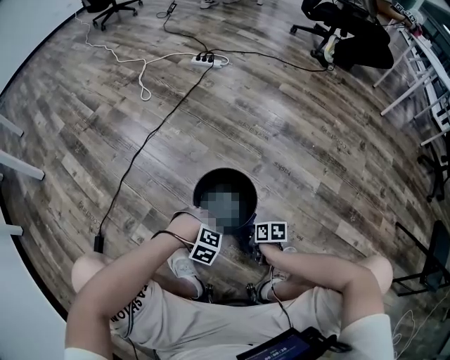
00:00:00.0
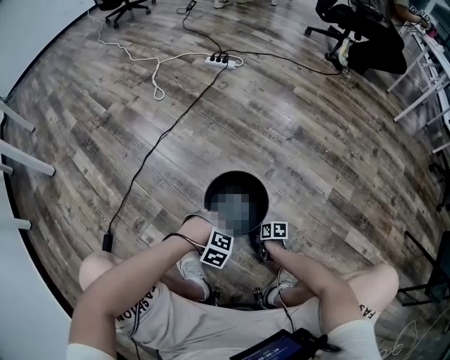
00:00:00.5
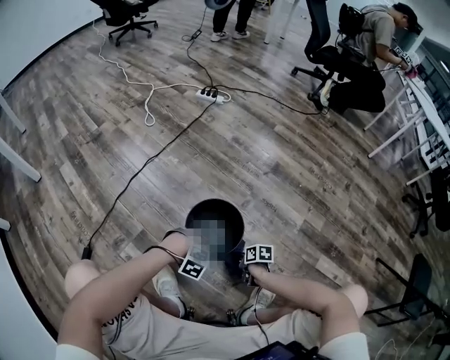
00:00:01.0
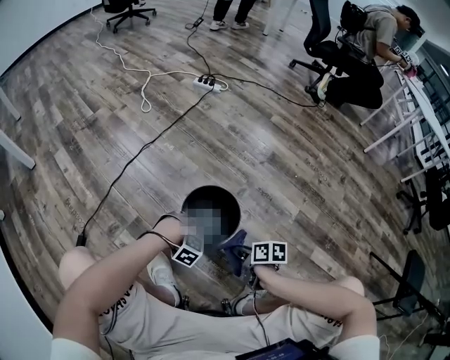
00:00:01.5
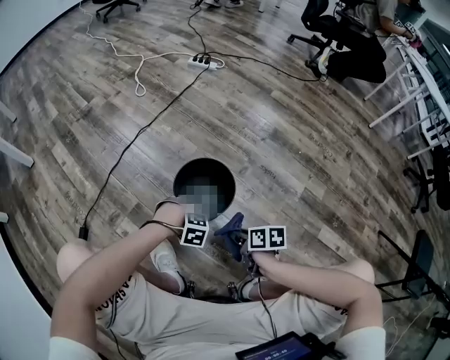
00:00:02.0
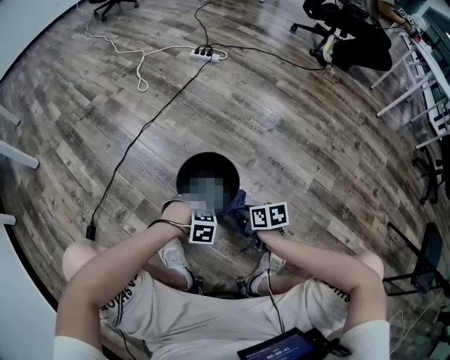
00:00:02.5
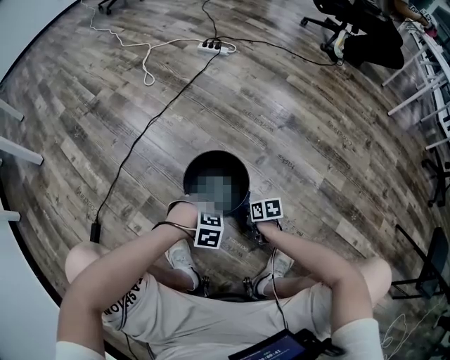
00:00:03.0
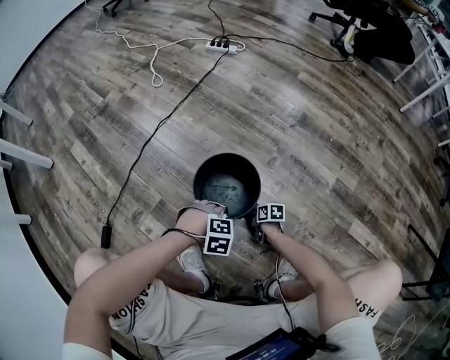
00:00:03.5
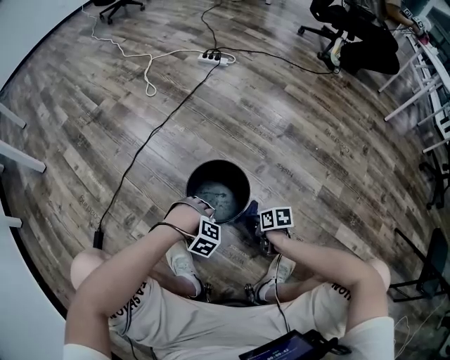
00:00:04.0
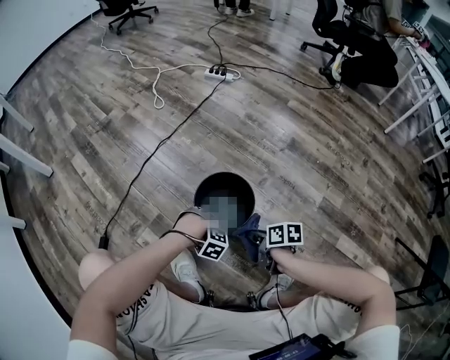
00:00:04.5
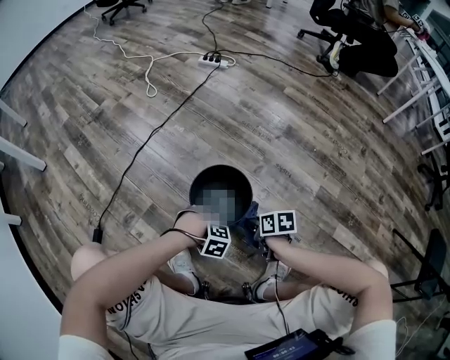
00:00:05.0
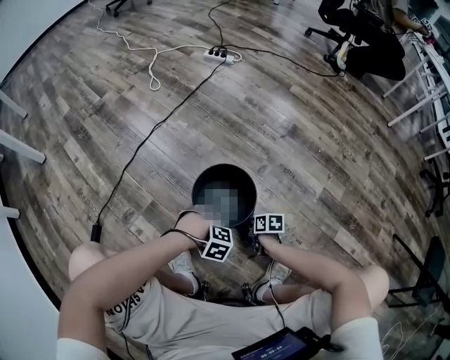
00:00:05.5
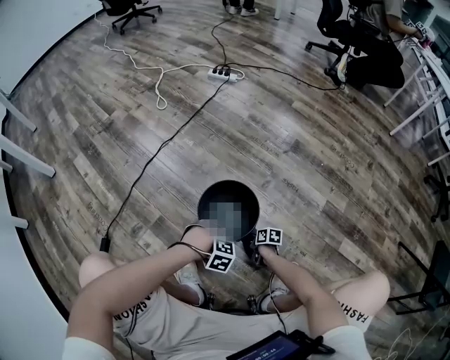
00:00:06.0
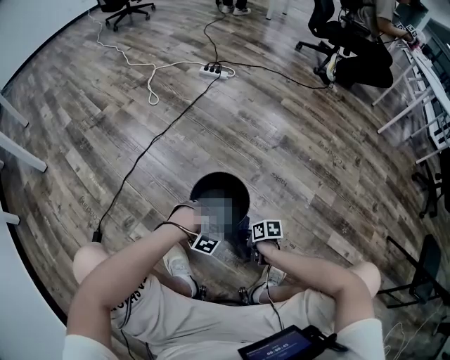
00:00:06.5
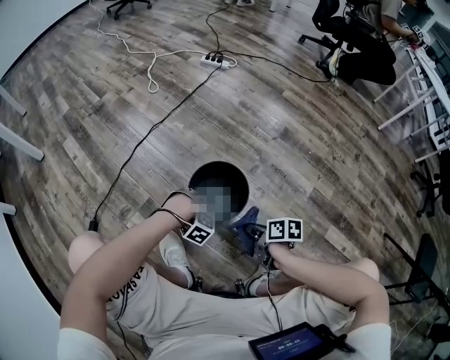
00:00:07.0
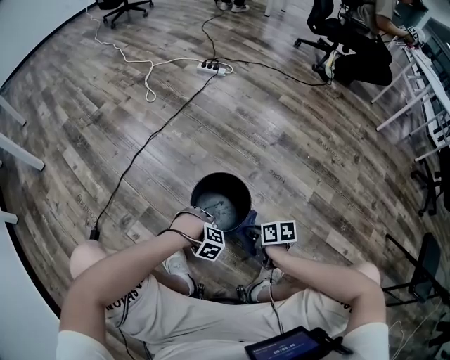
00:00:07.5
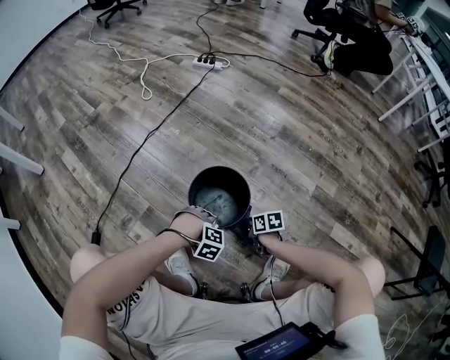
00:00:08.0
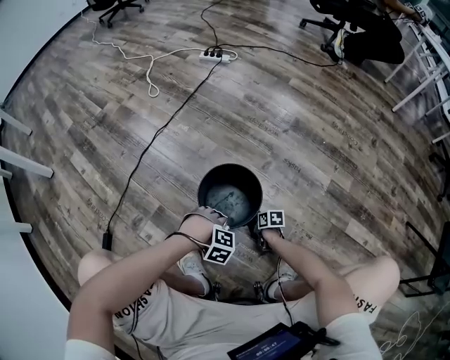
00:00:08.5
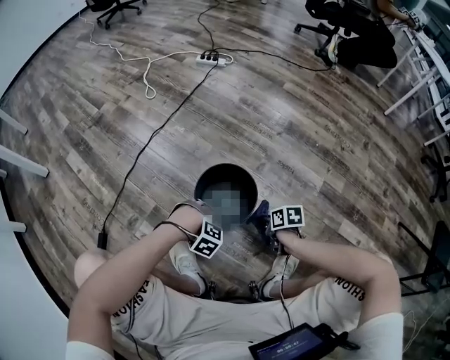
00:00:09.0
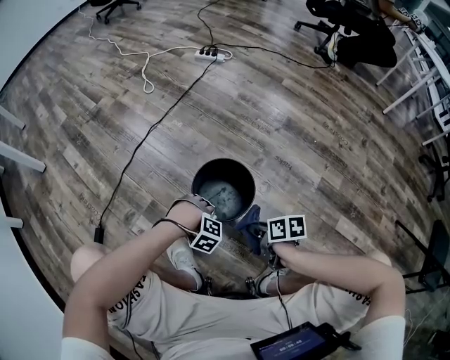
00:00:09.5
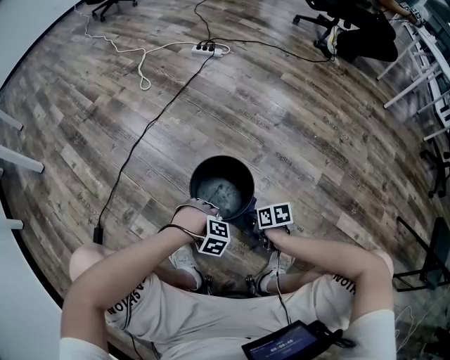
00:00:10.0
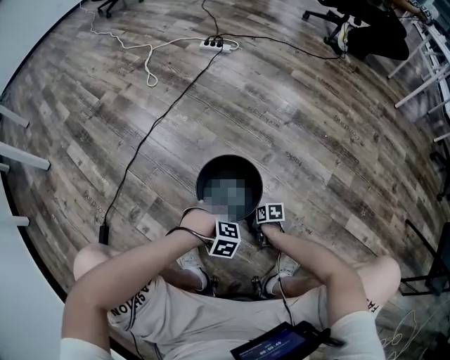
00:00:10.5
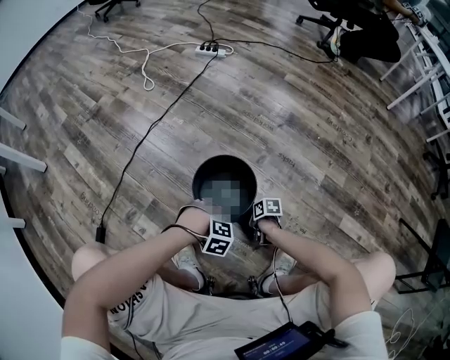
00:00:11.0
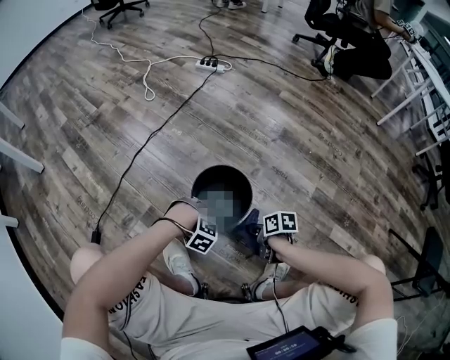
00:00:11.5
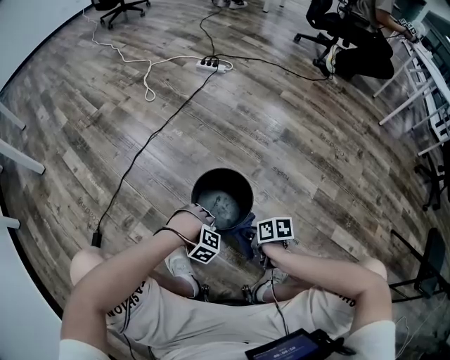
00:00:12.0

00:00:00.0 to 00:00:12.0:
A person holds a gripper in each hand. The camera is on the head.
00:00:00.0 to 00:00:02.0: The right gripper goes about 10 cm upward.
00:00:02.0 to 00:00:04.0: The right gripper is displaced downward by approximately 10 cm.
00:00:04.0 to 00:00:06.0: The right gripper moves downward, roughly 15 cm.
00:00:06.0 to 00:00:08.0: The right gripper moves upward, roughly 10 cm.
00:00:08.0 to 00:00:10.0: The right gripper moves up and down over some 25 cm, changing direction 2 times.
00:00:10.0 to 00:00:12.0: The right gripper moves about 15 cm downward and comes back.

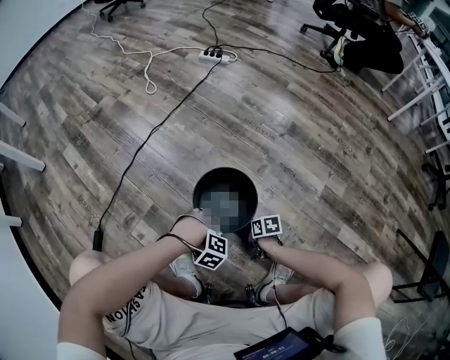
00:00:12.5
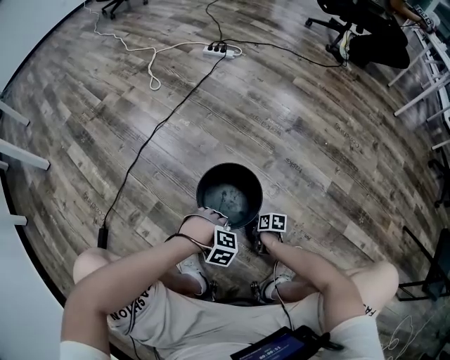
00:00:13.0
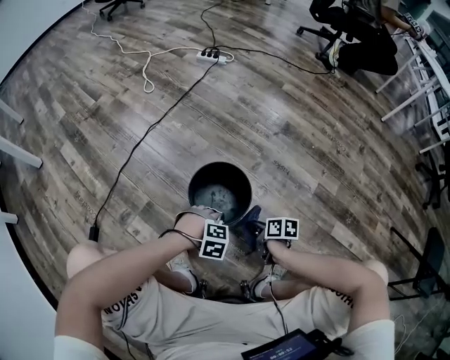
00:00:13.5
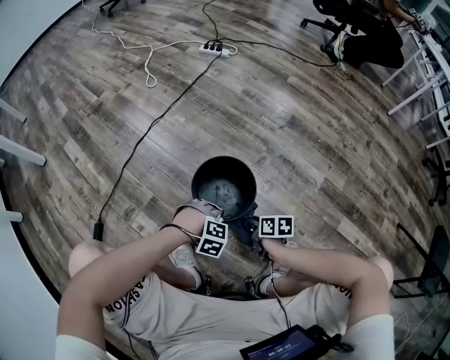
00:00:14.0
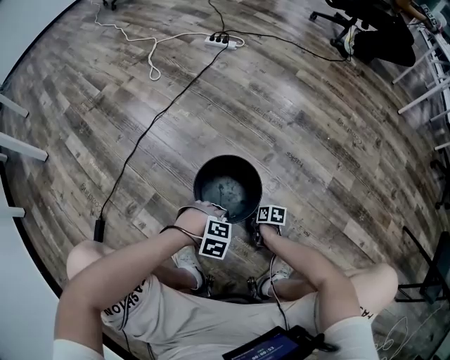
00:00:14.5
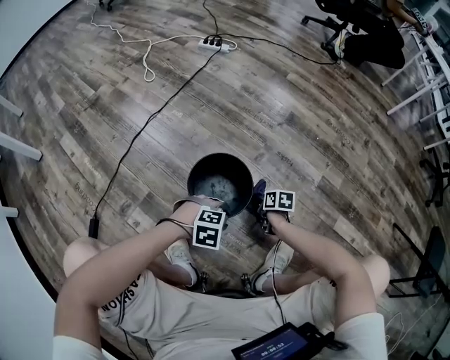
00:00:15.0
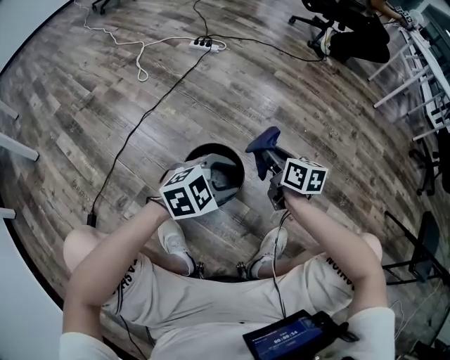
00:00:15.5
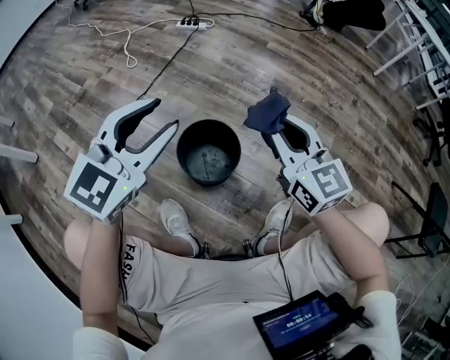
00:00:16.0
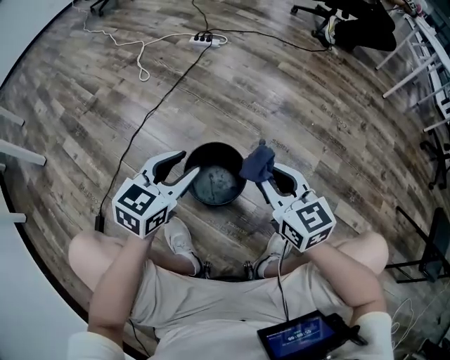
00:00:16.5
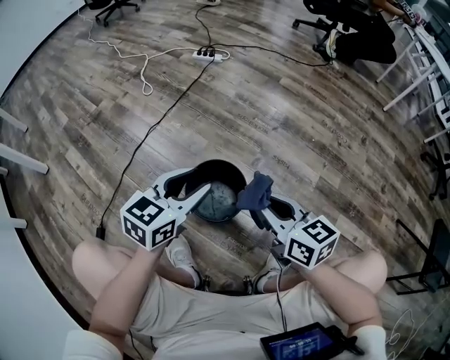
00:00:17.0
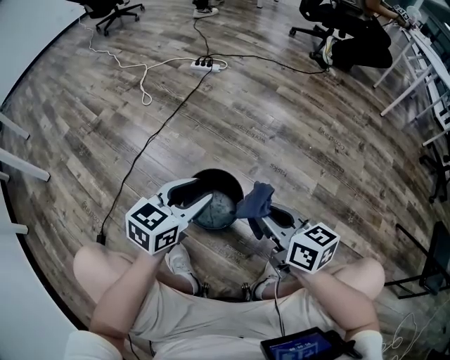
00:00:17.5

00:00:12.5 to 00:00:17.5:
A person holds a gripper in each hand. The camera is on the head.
00:00:12.5 to 00:00:15.0: The right gripper goes up and down, roughly 15 cm each way, reversing 3 times.
00:00:15.0 to 00:00:17.5: The right gripper goes approximately 35 cm upward, and tips its fingers upward by roughly 40 degrees.

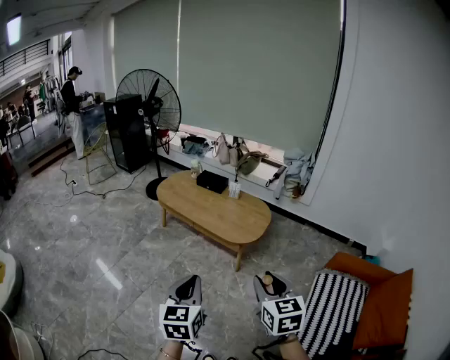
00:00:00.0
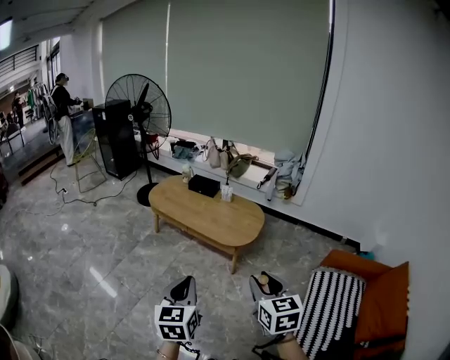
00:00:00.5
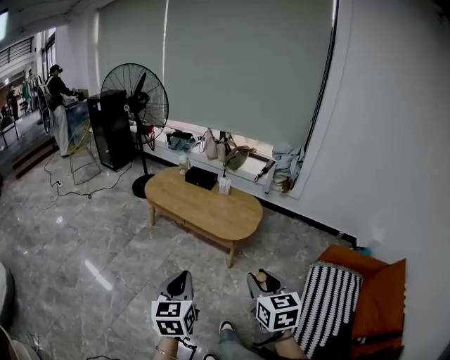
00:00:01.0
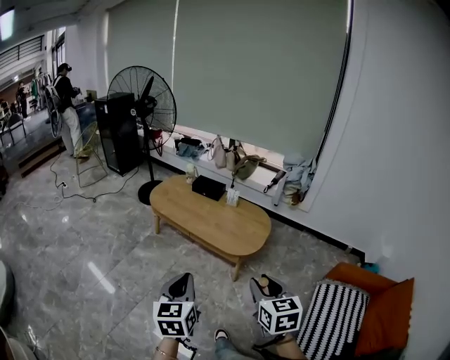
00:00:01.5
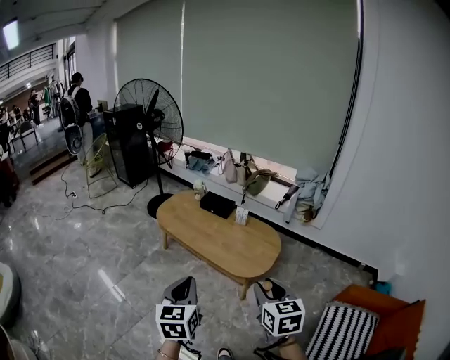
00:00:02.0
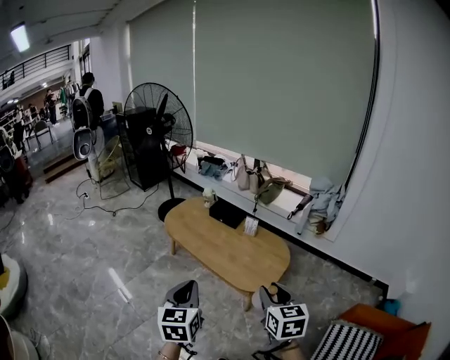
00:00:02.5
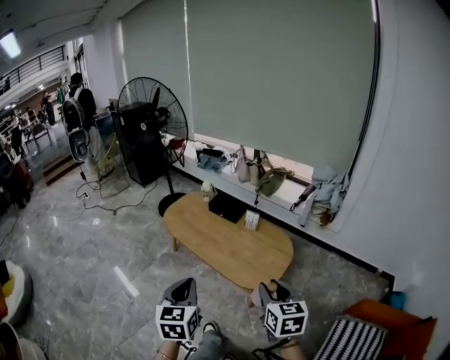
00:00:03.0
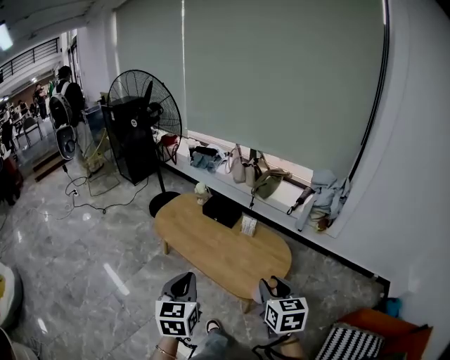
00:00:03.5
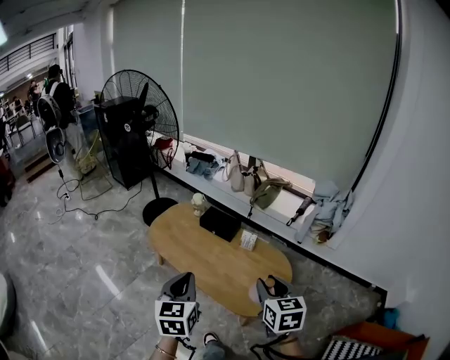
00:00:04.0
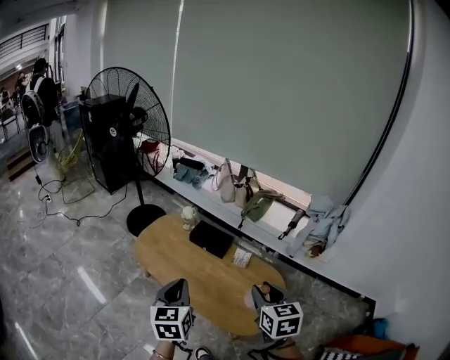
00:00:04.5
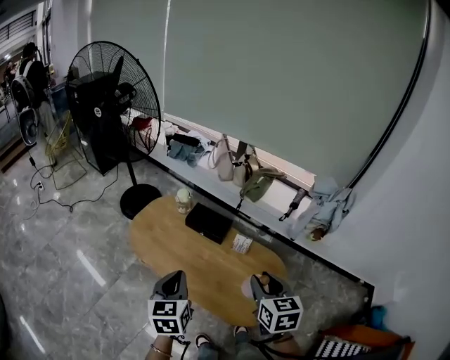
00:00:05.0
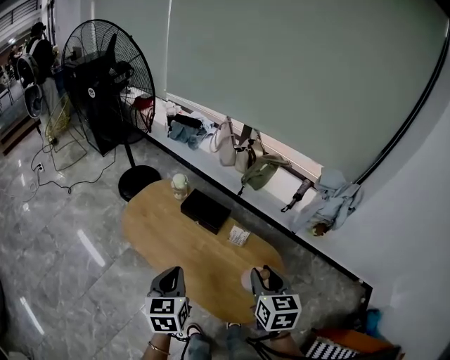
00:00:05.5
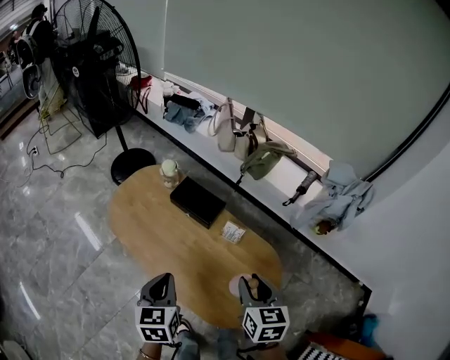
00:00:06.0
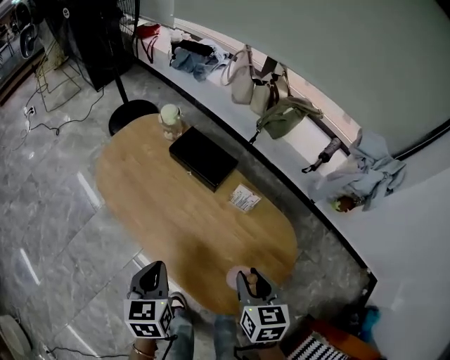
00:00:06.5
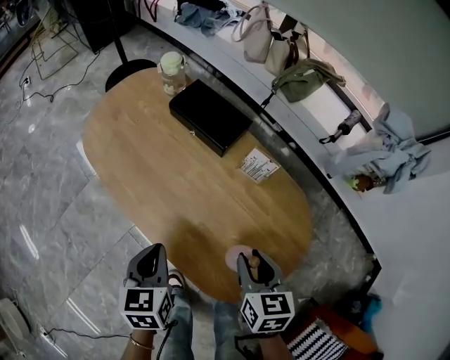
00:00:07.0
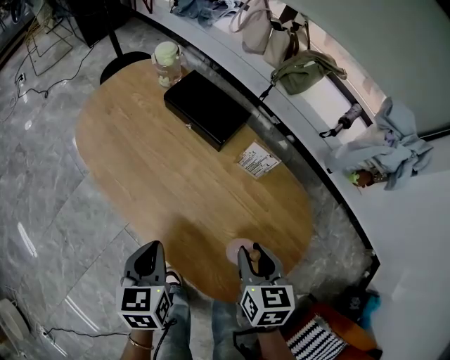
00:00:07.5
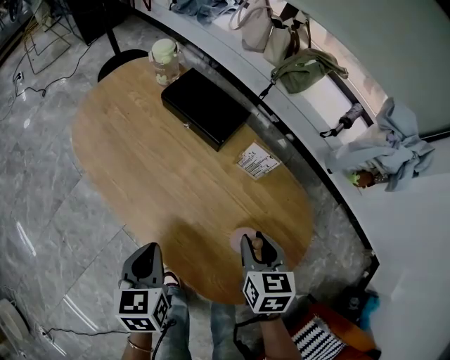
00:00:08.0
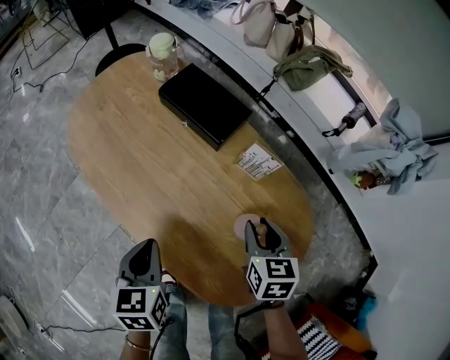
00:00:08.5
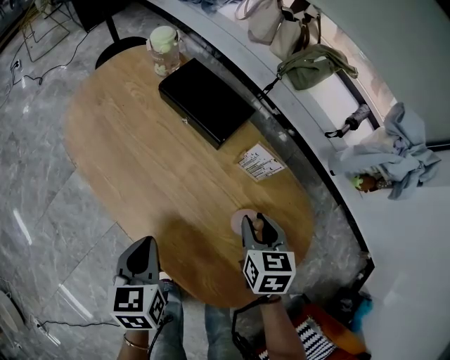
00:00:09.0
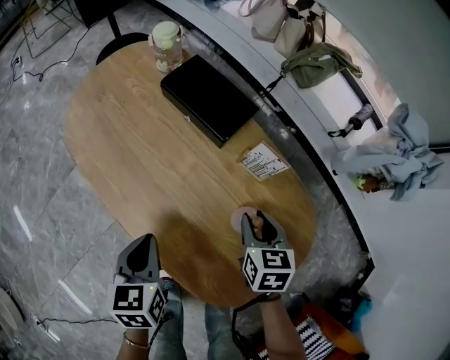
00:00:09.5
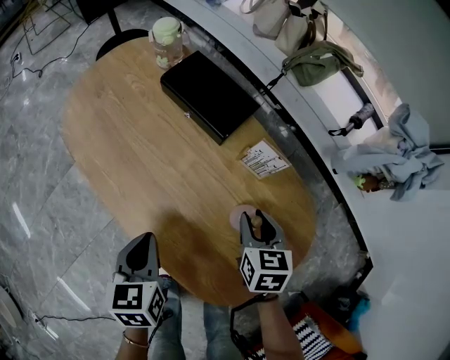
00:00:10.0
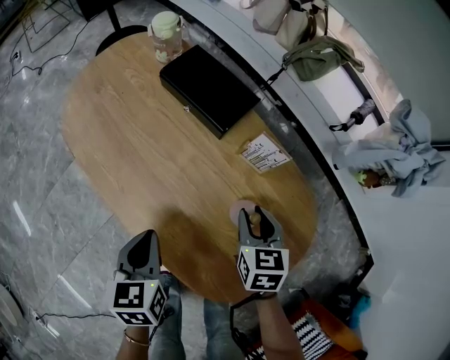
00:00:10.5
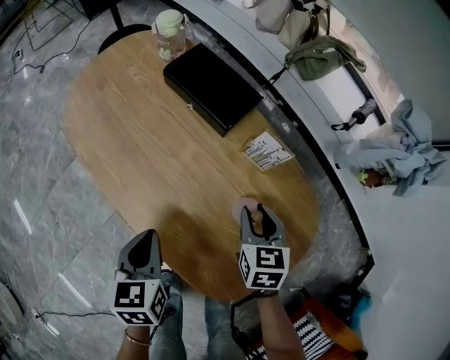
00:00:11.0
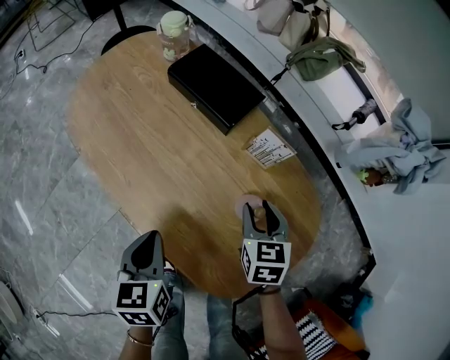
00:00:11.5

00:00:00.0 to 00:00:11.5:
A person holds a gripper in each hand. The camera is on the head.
00:00:00.0 to 00:00:02.0: Both grippers move forward, approximately 20 cm.
00:00:02.0 to 00:00:04.0: Both grippers move forward, about 30 cm.
00:00:04.0 to 00:00:06.0: The grippers both shift forward and downward by roughly 25 cm.
00:00:06.0 to 00:00:07.5: The two grippers go about 25 cm downward.
00:00:07.5 to 00:00:09.5: The right gripper travels forward and downward by roughly 10 cm.
00:00:09.5 to 00:00:11.5: The grippers stay close to where they were, moving slightly.
